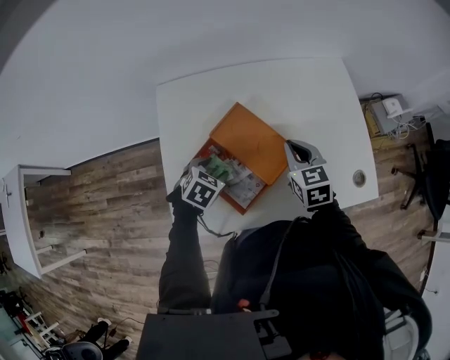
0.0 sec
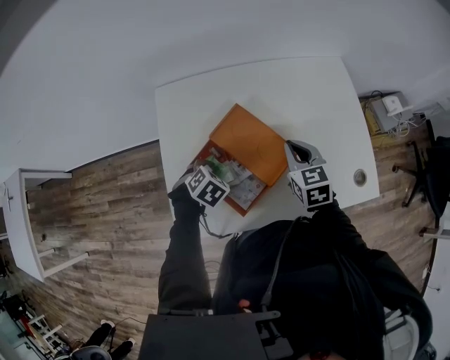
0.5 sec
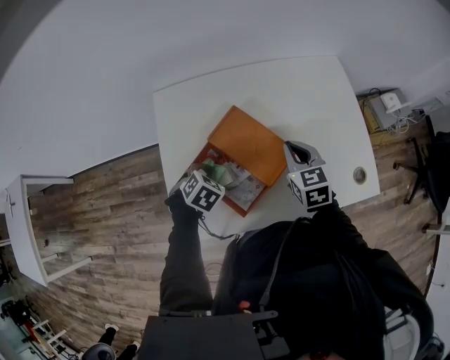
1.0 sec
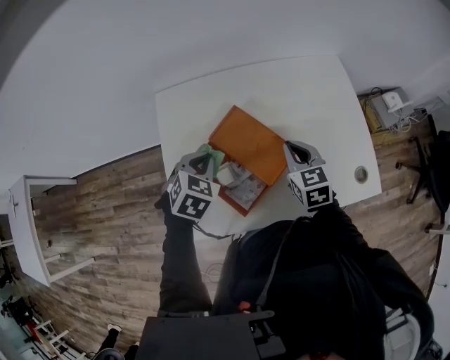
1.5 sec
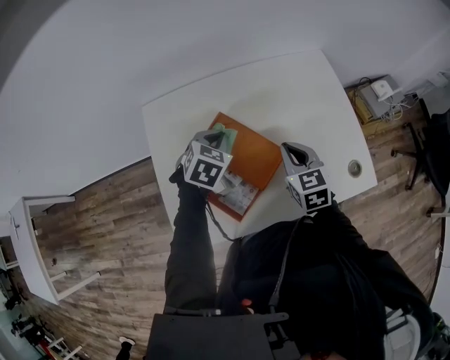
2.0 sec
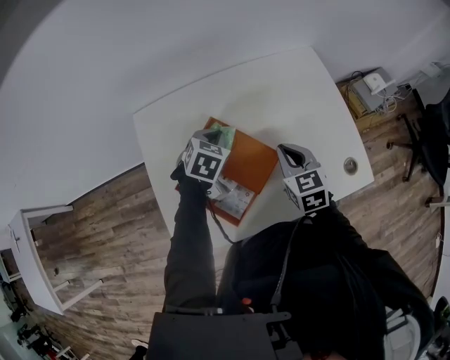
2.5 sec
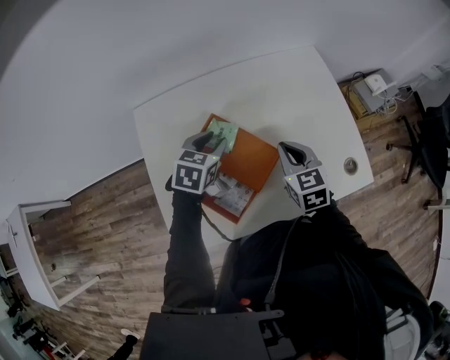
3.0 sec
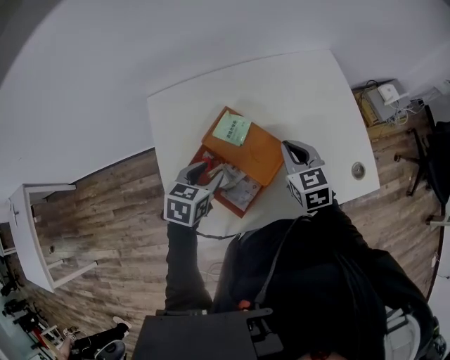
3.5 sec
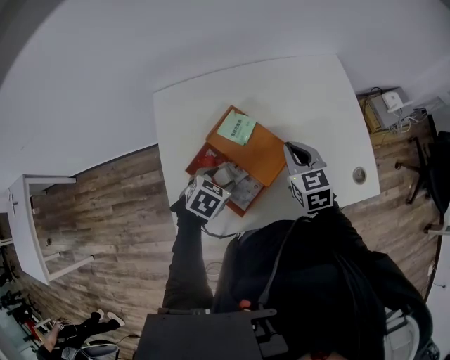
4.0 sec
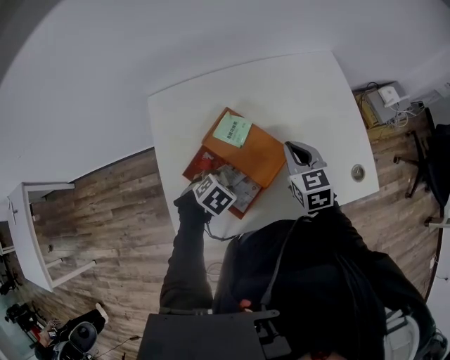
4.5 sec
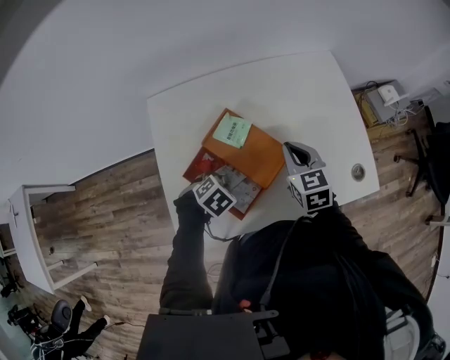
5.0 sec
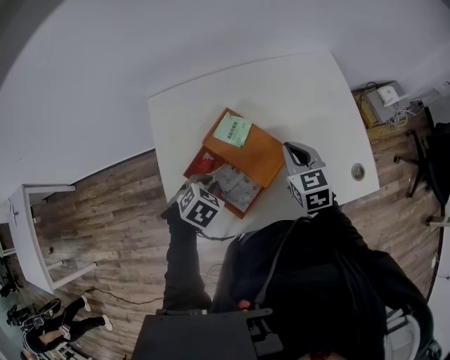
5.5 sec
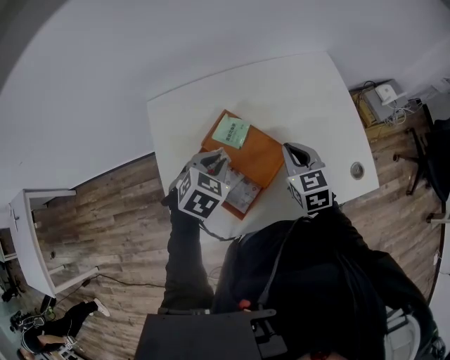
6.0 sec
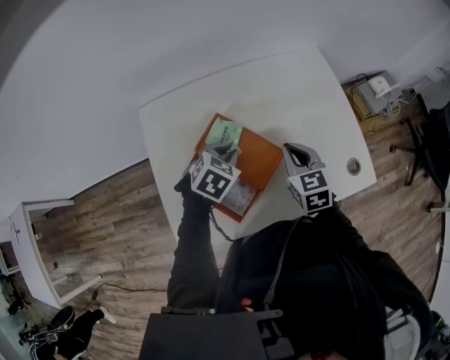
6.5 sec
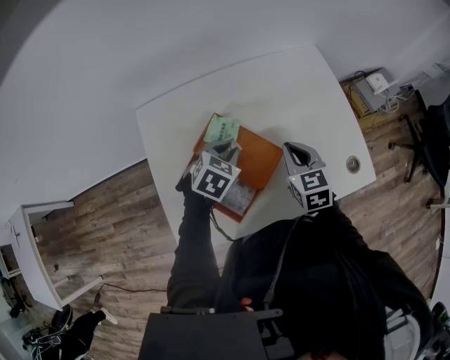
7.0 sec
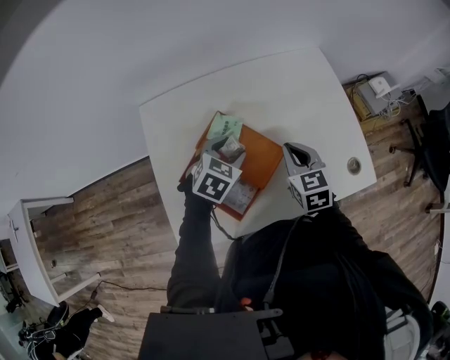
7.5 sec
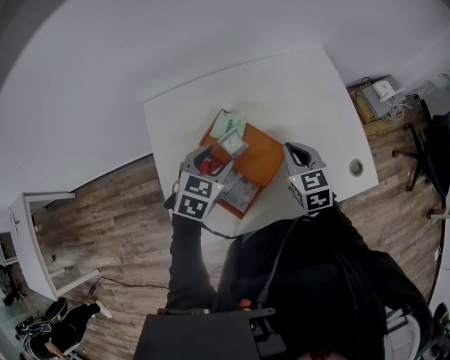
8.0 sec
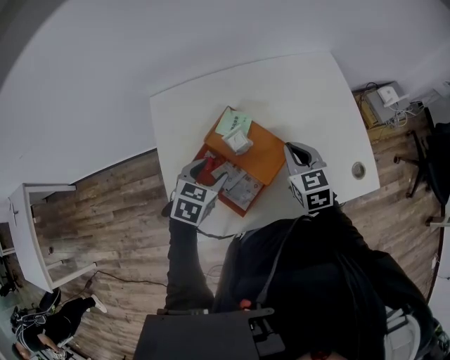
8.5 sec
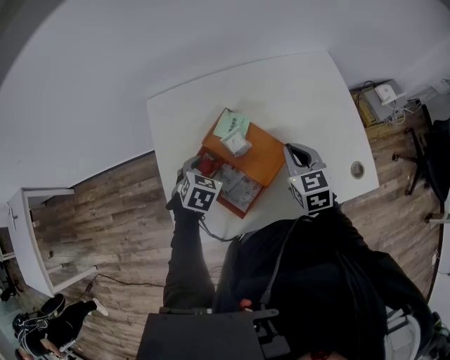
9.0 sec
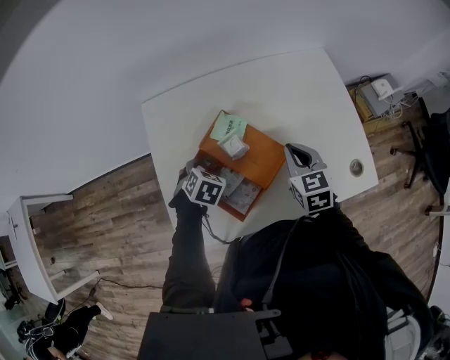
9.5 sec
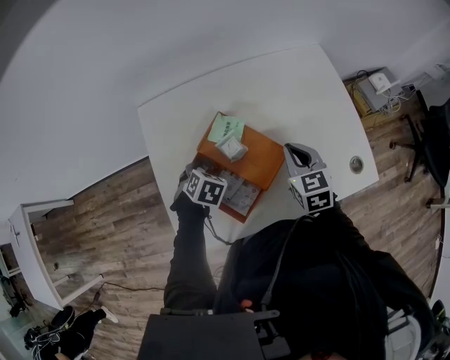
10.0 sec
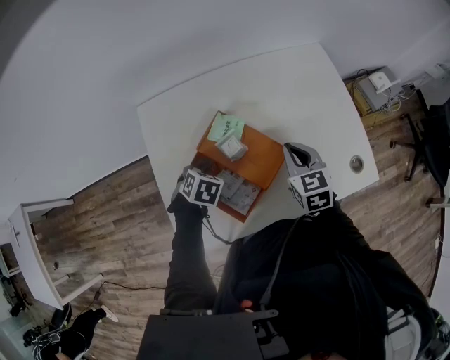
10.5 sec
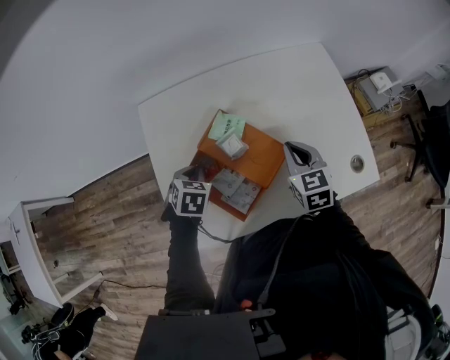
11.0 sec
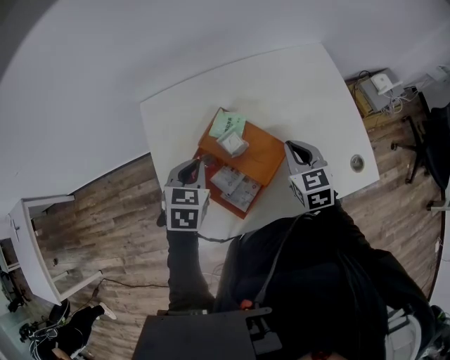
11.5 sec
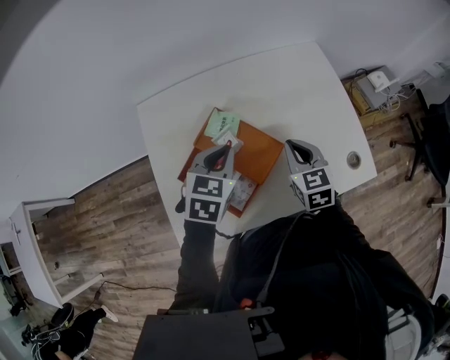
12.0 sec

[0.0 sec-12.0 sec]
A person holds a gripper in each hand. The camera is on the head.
0.0 sec to 2.0 sec: The left gripper goes roughly 15 cm forward, upward and to the right, and closes its fingers.
2.0 sec to 4.0 sec: The left gripper is displaced backward and downward by about 15 cm, and opens up.
4.0 sec to 6.0 sec: The left gripper moves upward, roughly 10 cm, and closes up.
6.0 sec to 8.0 sec: The left gripper opens.
8.0 sec to 10.0 sec: The left gripper heads downward and to the left, covering some 15 cm, and rotates some 30 degrees.
10.0 sec to 12.0 sec: The left gripper travels upward and to the right by about 15 cm, swivels approximately 30 degrees, and closes up.

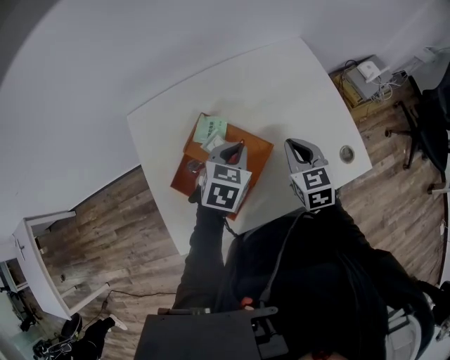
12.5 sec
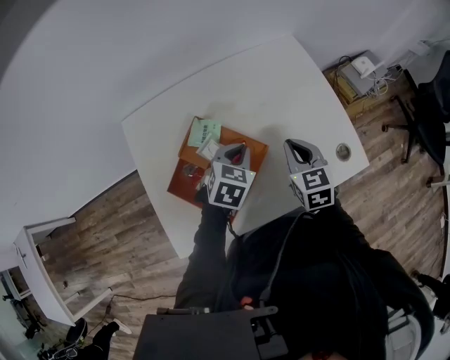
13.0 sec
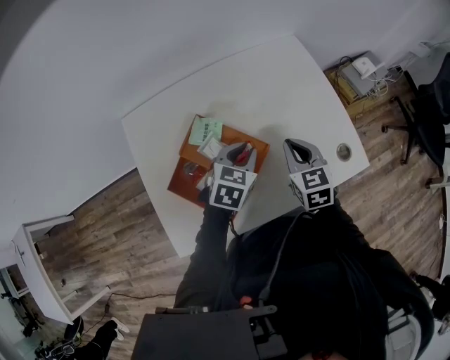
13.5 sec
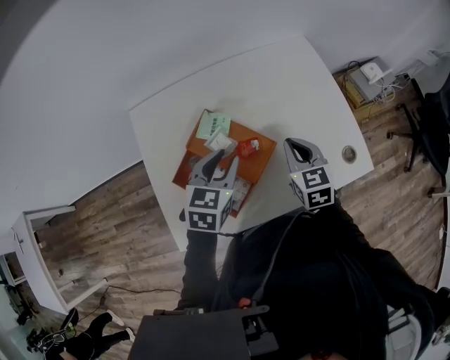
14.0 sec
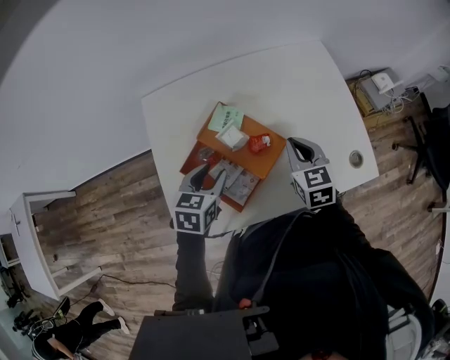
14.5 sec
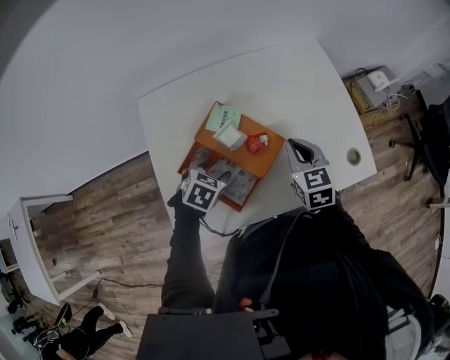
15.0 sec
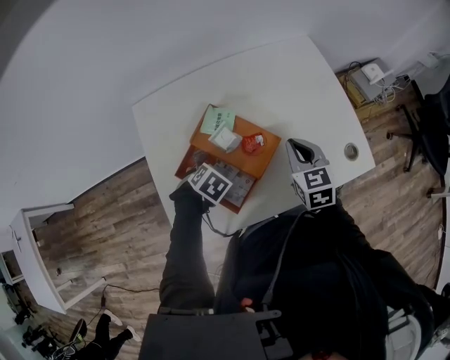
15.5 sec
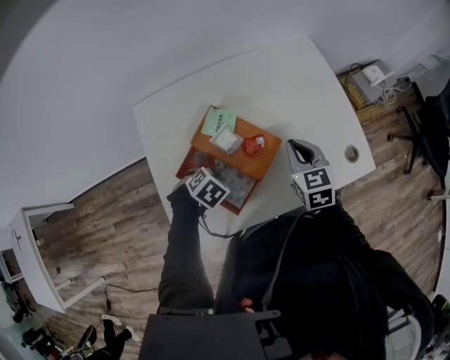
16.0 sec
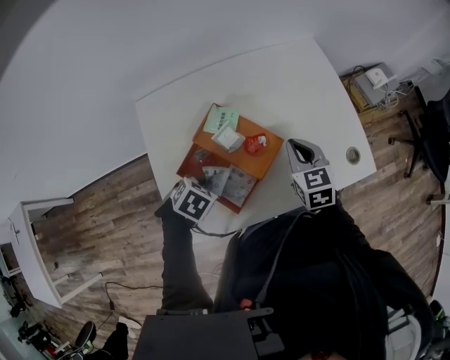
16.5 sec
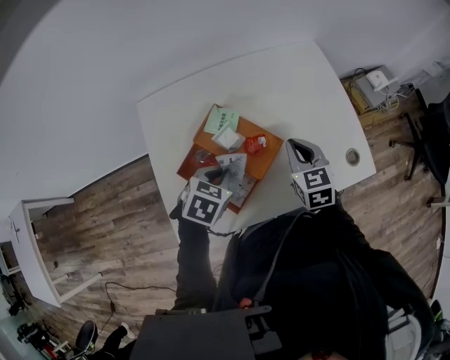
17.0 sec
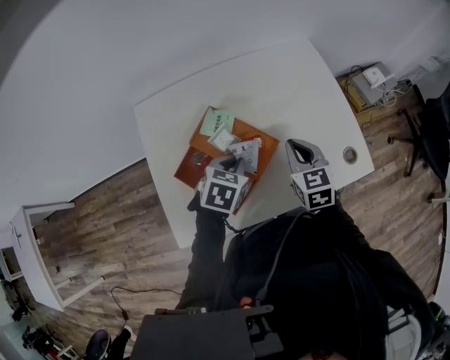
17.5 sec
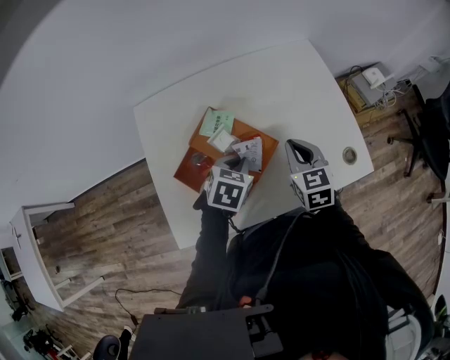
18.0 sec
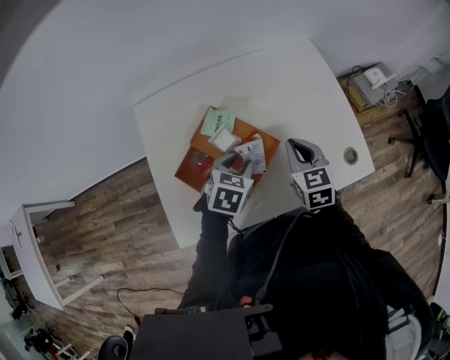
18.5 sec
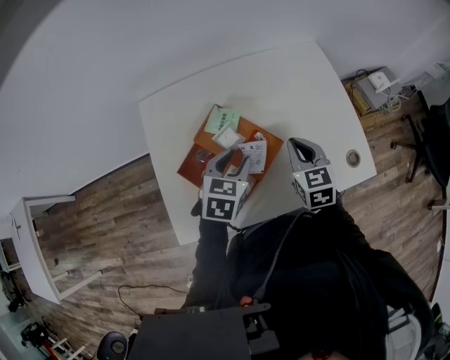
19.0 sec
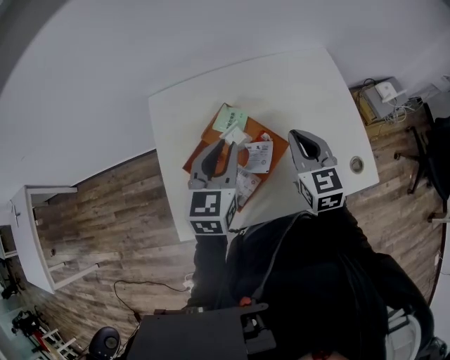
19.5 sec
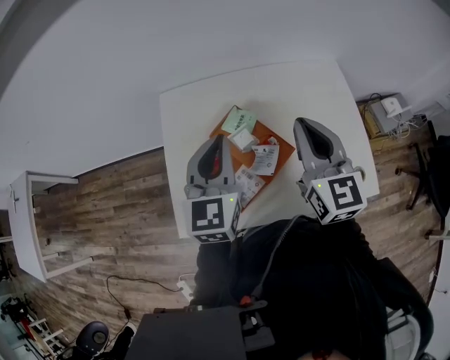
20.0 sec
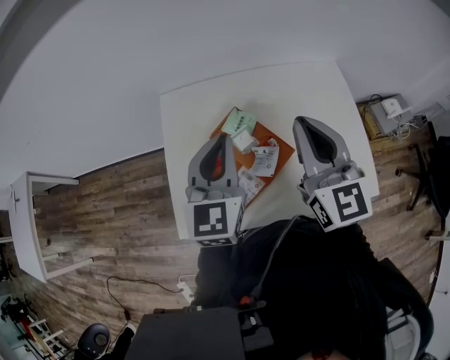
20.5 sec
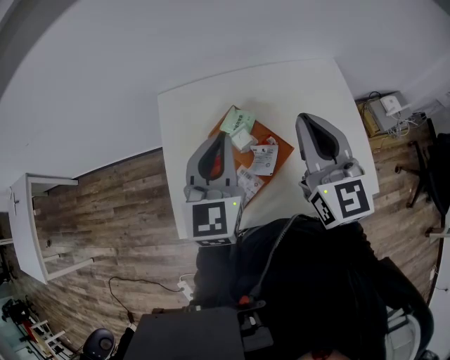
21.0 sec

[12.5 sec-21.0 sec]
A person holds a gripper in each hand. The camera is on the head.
12.5 sec to 14.5 sec: The left gripper travels to the left and backward by approximately 15 cm, and opens up.
14.5 sec to 16.5 sec: The left gripper shifts some 5 cm downward, points its fingers about 30 degrees further downward, and closes.
16.5 sec to 19.0 sec: The left gripper heads to the right, forward and upward, covering approximately 15 cm, tips its fingers upward by some 30 degrees, and opens its fingers.
19.0 sec to 21.0 sec: The grippers both shift upward by about 20 cm. The right gripper angles its fingers upward, by roughly 30 degrees. Meanwhile the left gripper tilts its fingers approximately 30 degrees upward, and closes up.

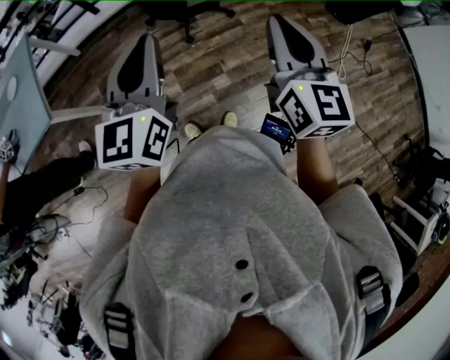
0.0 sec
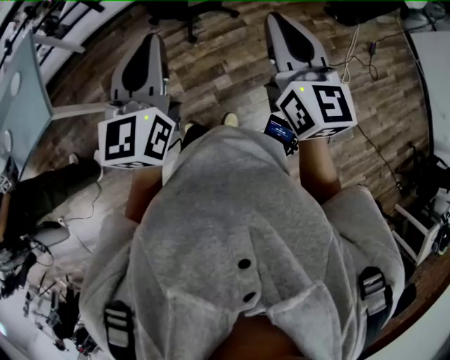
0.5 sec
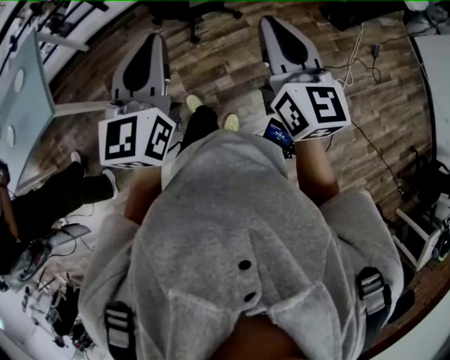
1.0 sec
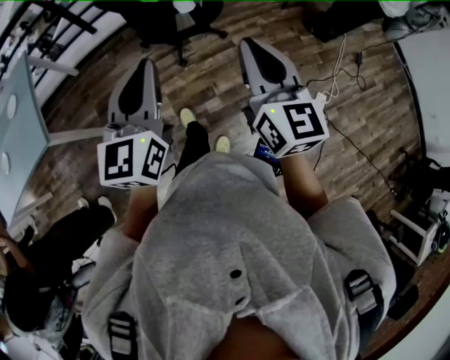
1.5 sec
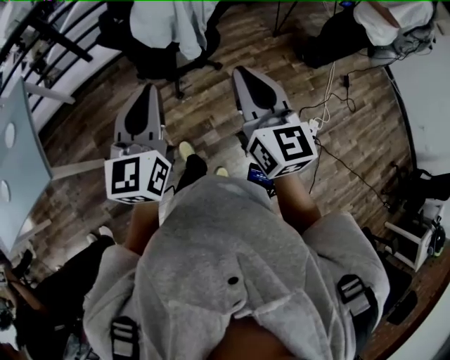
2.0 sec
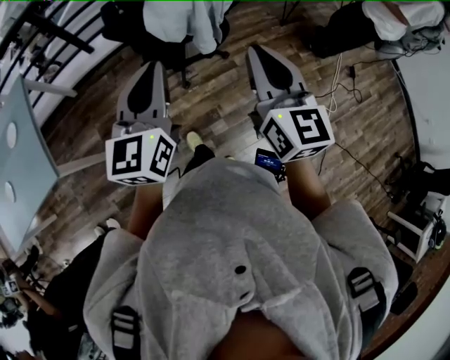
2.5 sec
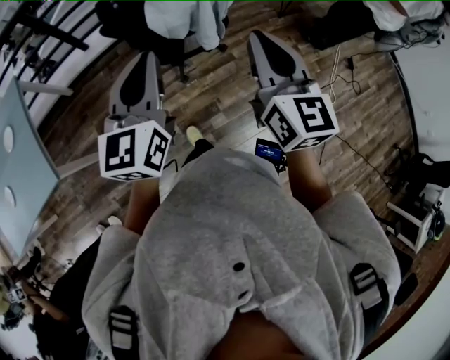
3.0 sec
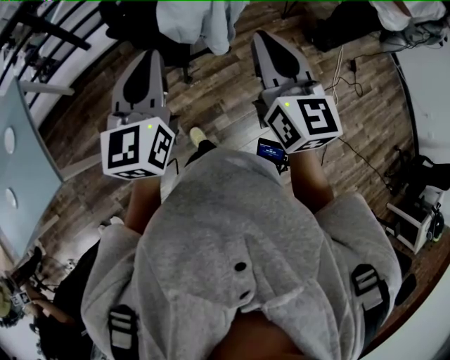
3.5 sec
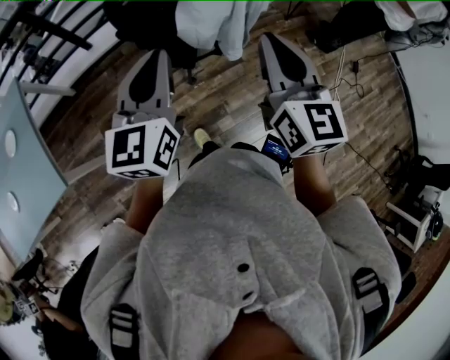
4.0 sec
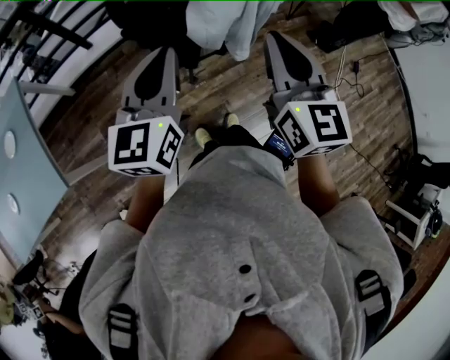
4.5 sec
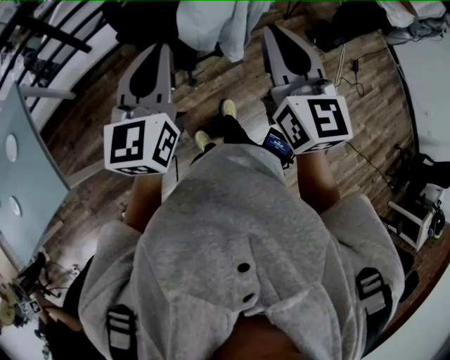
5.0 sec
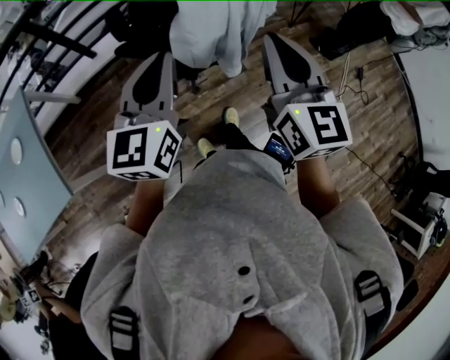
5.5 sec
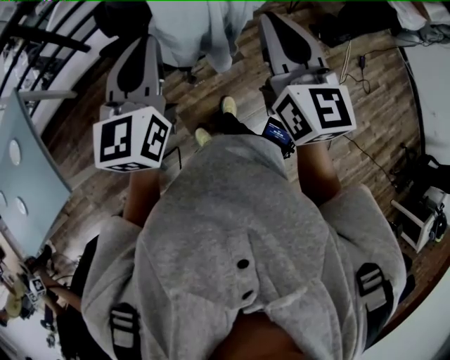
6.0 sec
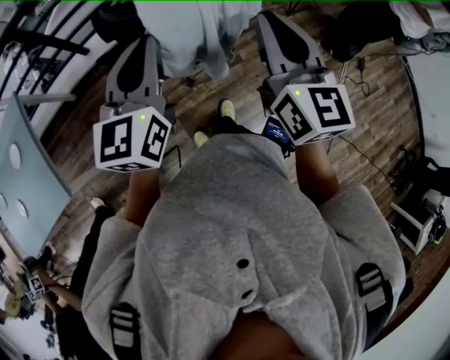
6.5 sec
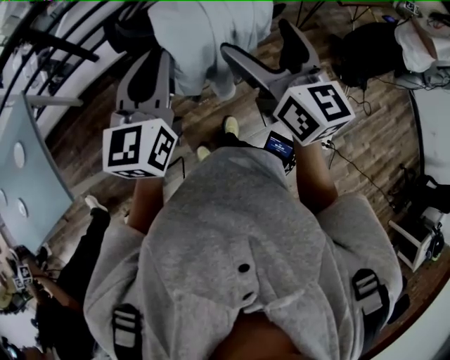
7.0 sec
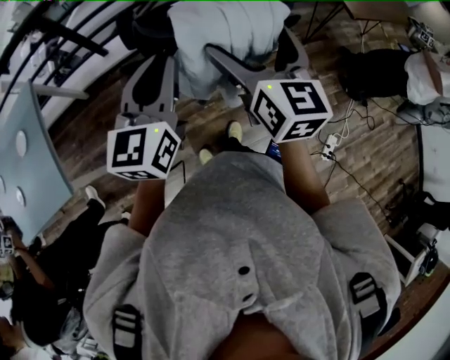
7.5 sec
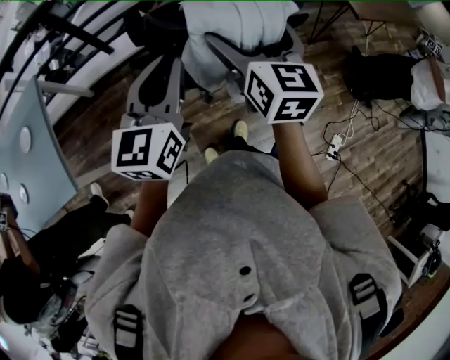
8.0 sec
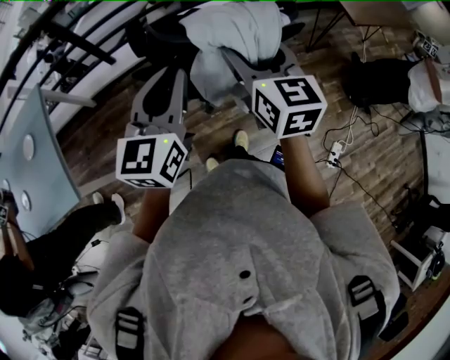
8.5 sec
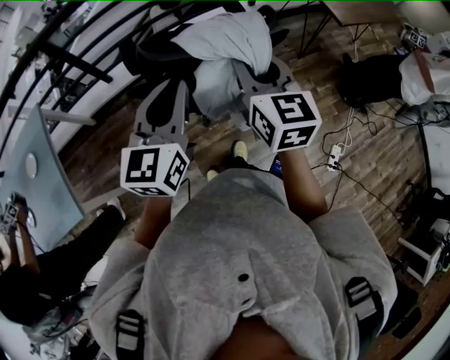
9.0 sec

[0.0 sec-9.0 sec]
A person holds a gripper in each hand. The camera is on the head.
0.0 sec to 2.0 sec: Both grippers move forward, roughly 15 cm.
2.0 sec to 4.5 sec: The grippers both shift forward and to the left by some 15 cm.
4.5 sec to 7.0 sec: Both grippers move forward and to the right, some 10 cm. The right gripper opens up.
7.0 sec to 9.0 sec: The right gripper closes up.
